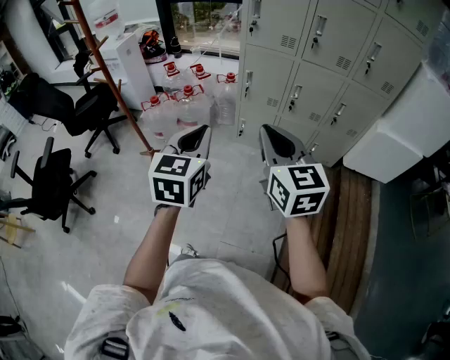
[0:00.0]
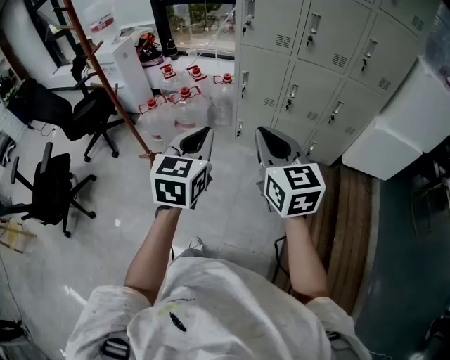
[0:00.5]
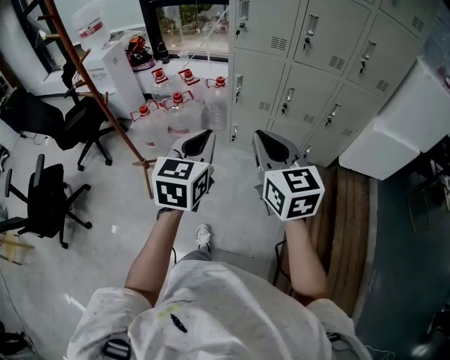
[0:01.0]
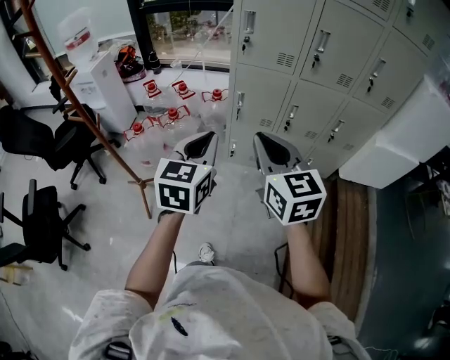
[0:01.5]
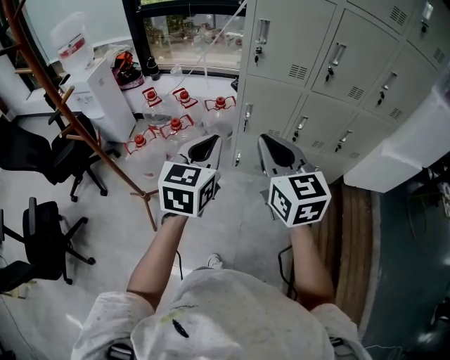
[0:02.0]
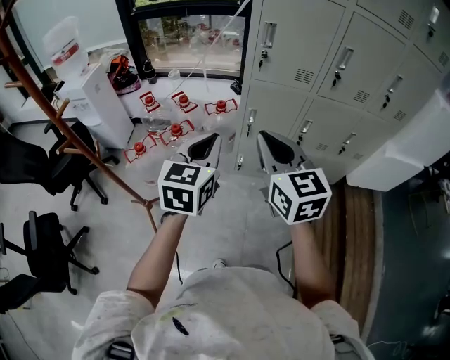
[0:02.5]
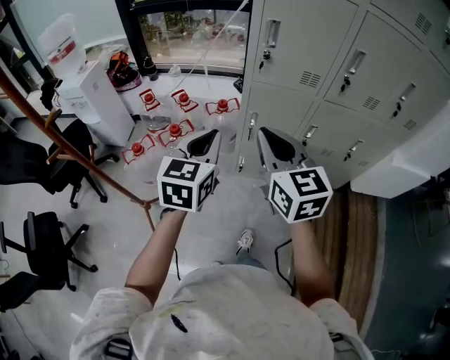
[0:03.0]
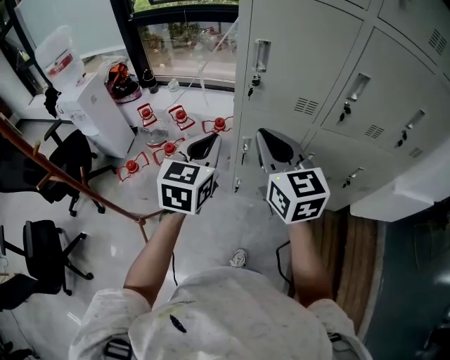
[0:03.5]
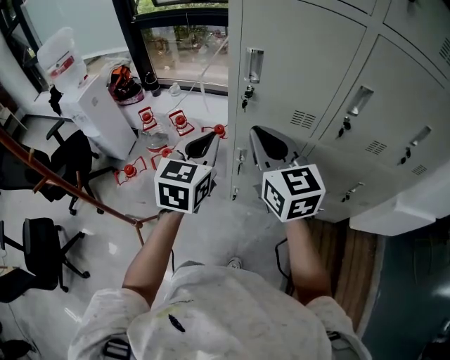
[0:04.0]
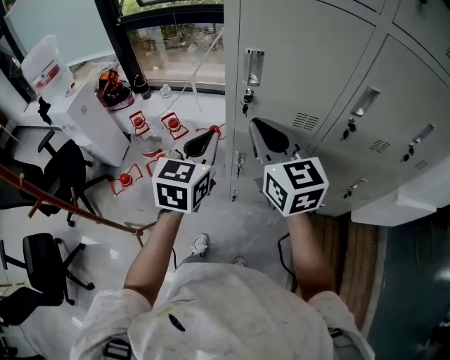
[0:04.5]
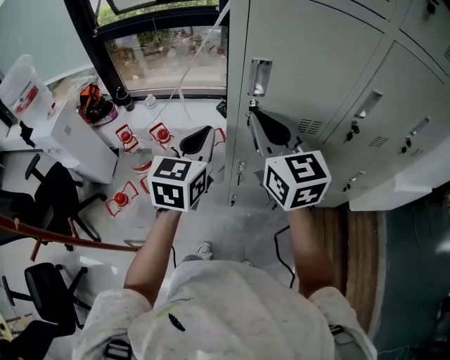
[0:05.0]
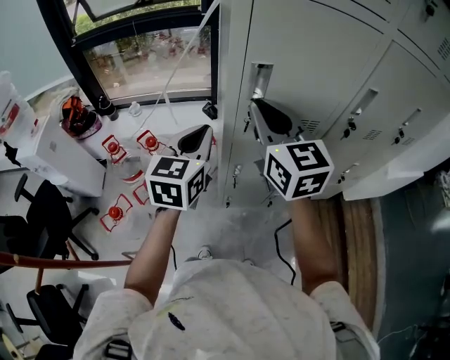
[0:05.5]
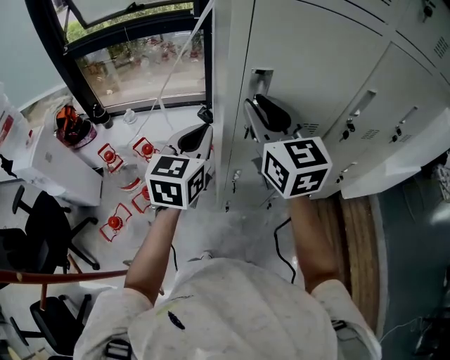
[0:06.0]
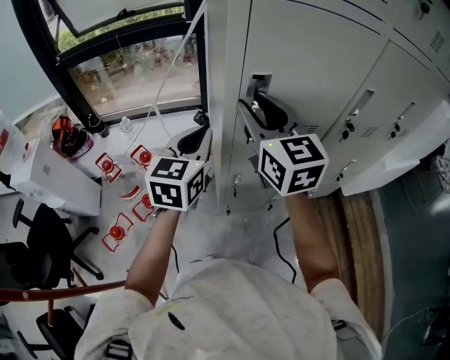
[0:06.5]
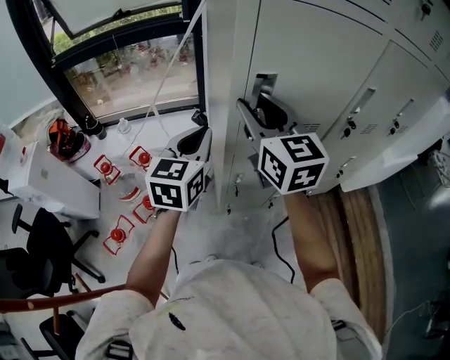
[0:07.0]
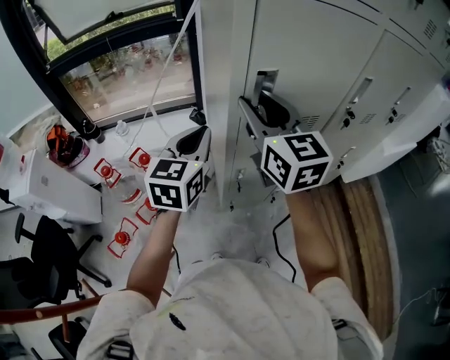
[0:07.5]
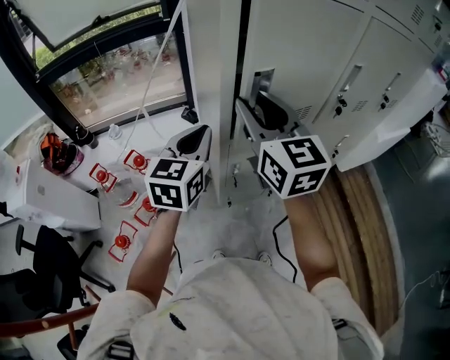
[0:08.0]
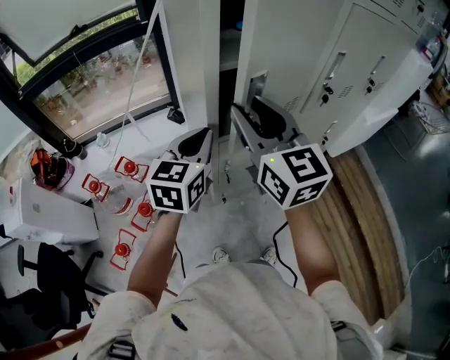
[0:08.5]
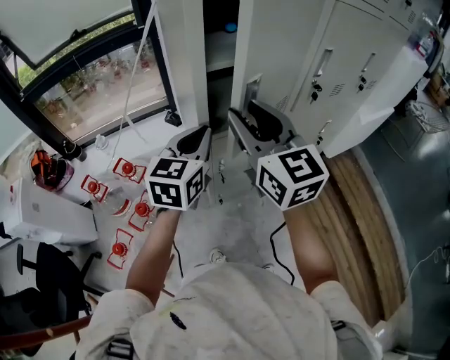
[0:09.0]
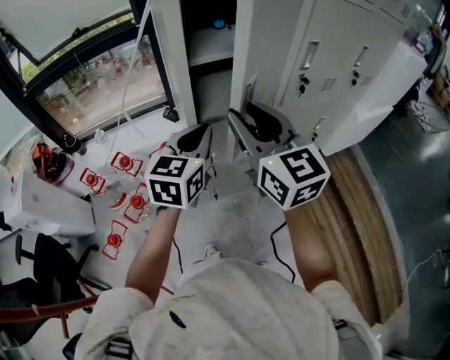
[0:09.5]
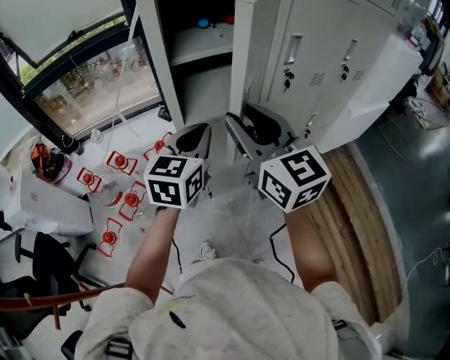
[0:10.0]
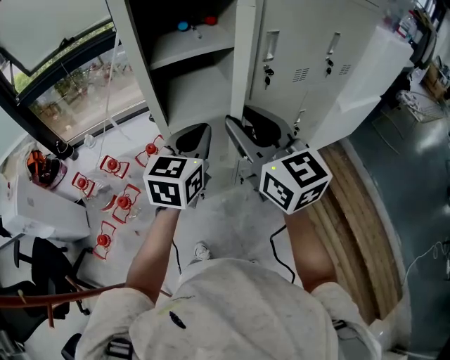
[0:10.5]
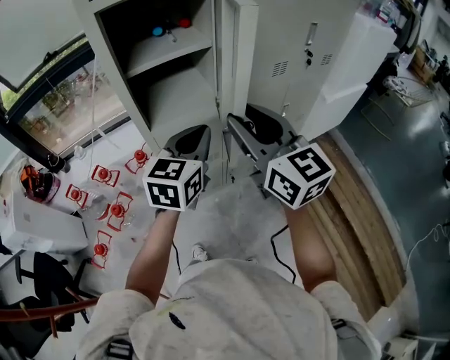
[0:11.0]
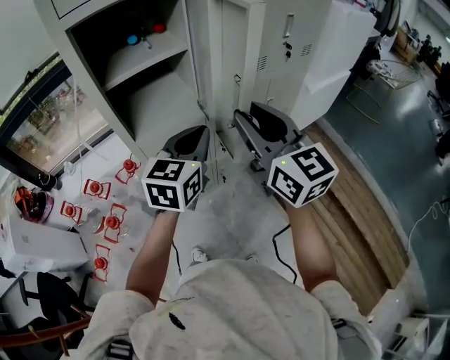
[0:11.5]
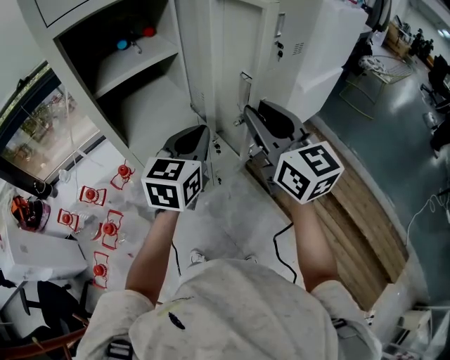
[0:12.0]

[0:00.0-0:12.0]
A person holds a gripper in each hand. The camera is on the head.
0:00.0 to 0:02.0: The grippers both shift forward by about 25 cm.
0:02.0 to 0:04.0: Both grippers travel together forward, some 25 cm.
0:04.0 to 0:06.0: The two grippers go roughly 15 cm forward. The right gripper turns by approximately 20 degrees.
0:06.0 to 0:08.0: The grippers stay close to where they were, moving slightly.
0:08.0 to 0:10.0: Both grippers travel together to the right and backward, about 15 cm.
0:10.0 to 0:12.0: Both grippers travel together to the right, about 20 cm.

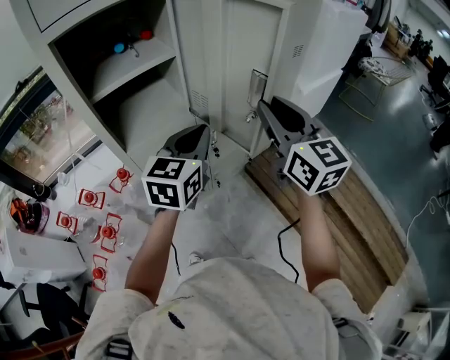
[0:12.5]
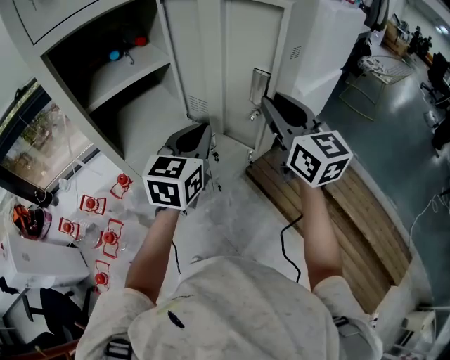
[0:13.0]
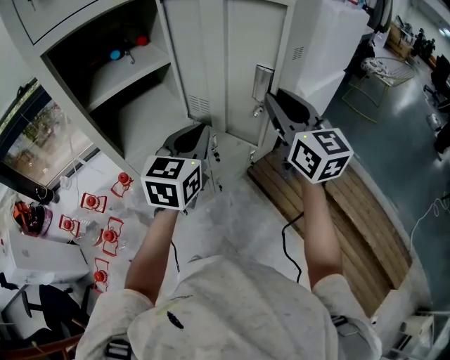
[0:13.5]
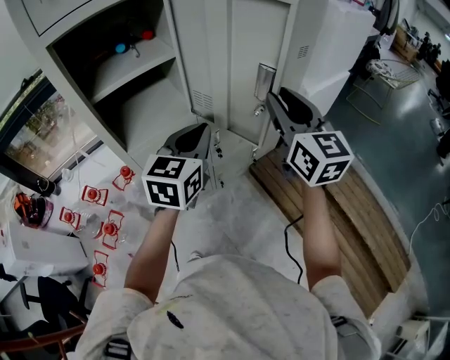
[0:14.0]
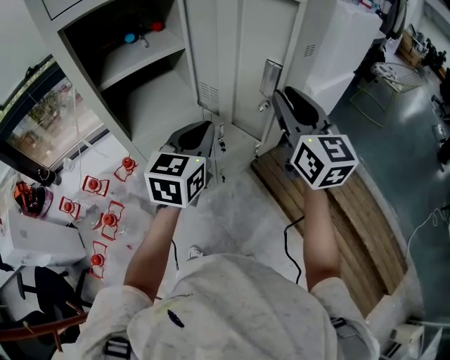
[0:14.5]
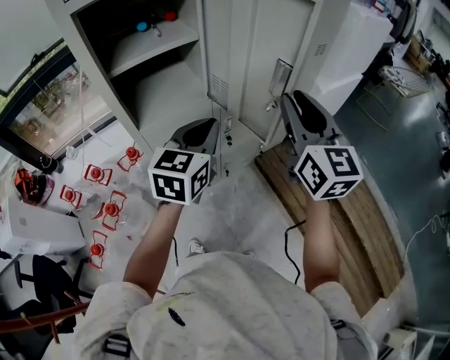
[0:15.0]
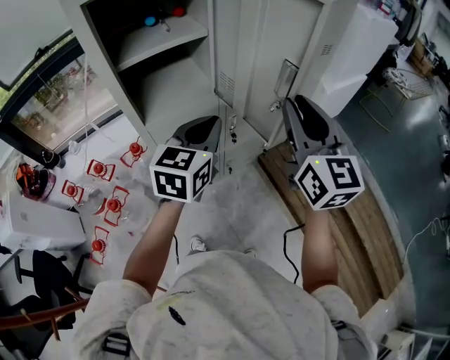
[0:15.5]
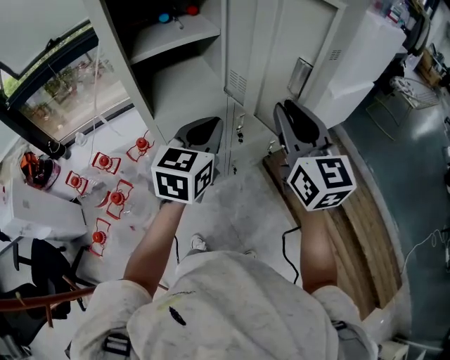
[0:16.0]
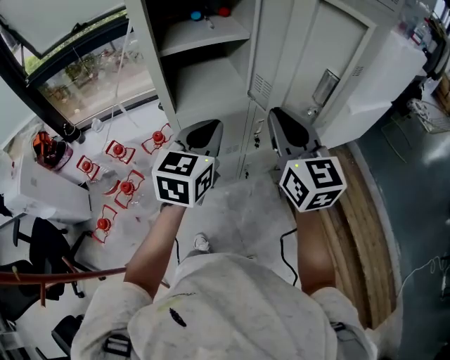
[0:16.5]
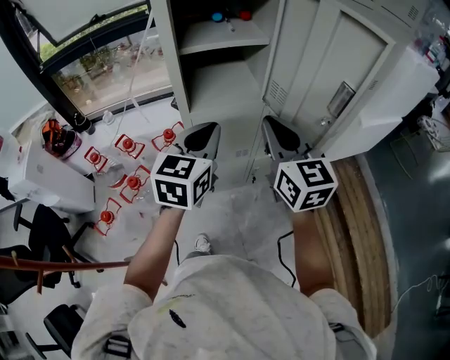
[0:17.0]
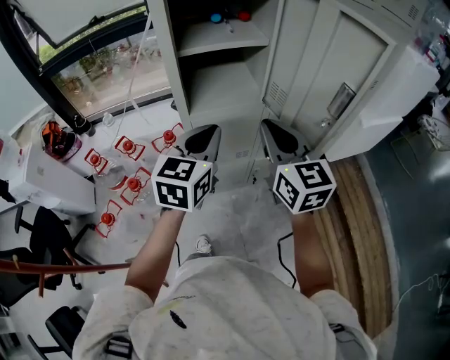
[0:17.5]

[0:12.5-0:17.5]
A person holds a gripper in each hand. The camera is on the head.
0:12.5 to 0:15.0: The grippers make only small movements.
0:15.0 to 0:17.5: Both grippers move to the left, approximately 15 cm. The right gripper changes its angle by about 20 degrees, and closes its fingers.

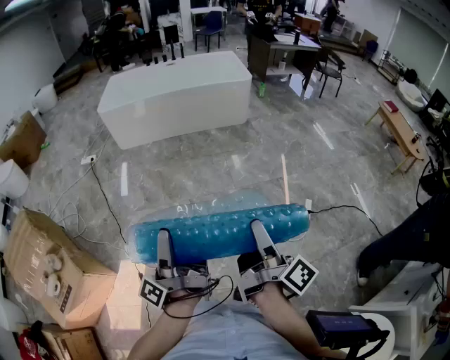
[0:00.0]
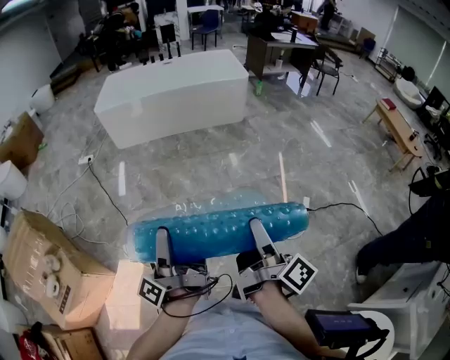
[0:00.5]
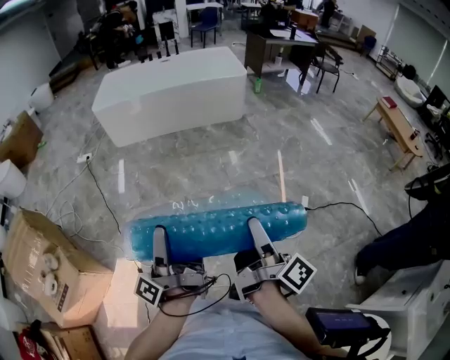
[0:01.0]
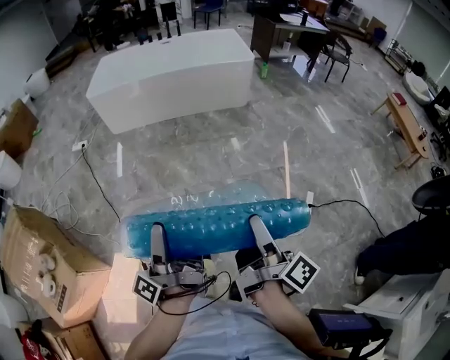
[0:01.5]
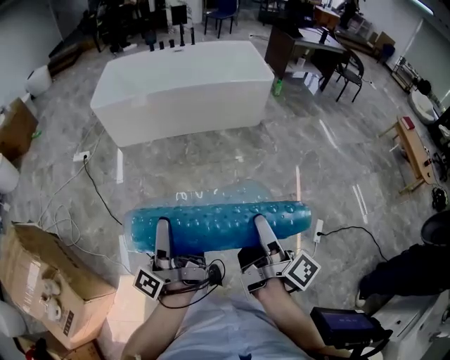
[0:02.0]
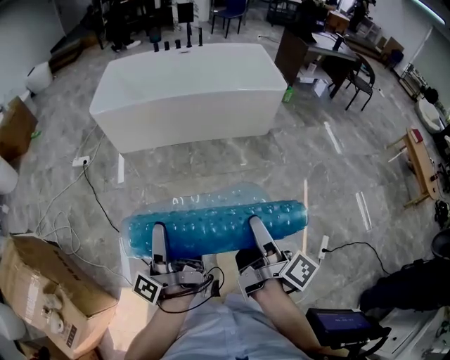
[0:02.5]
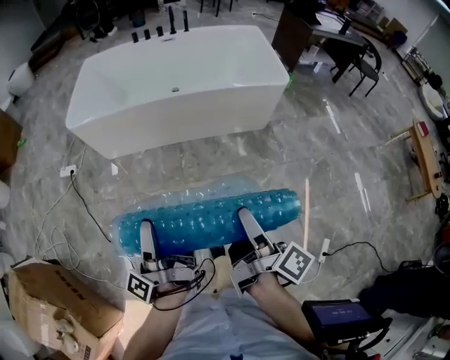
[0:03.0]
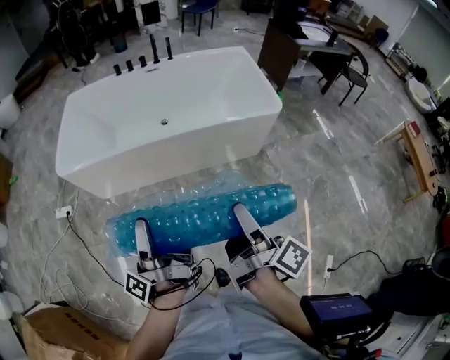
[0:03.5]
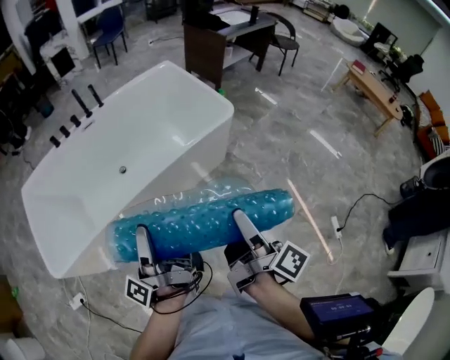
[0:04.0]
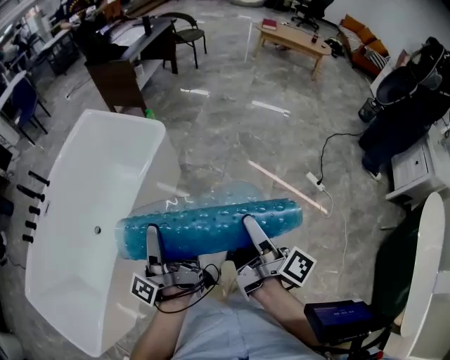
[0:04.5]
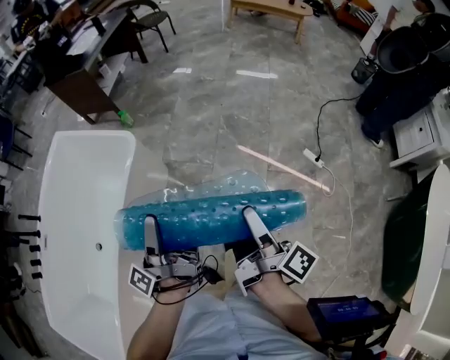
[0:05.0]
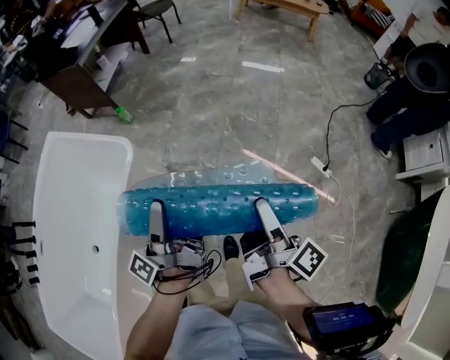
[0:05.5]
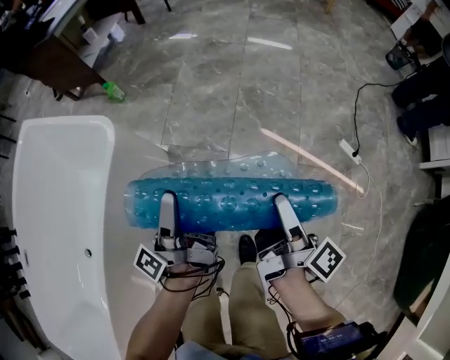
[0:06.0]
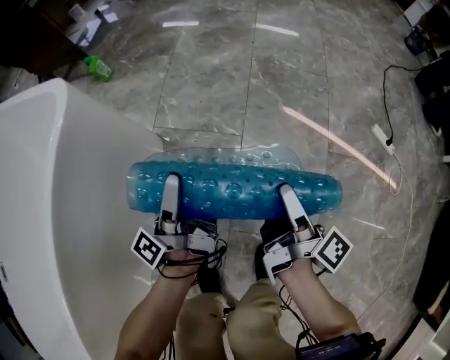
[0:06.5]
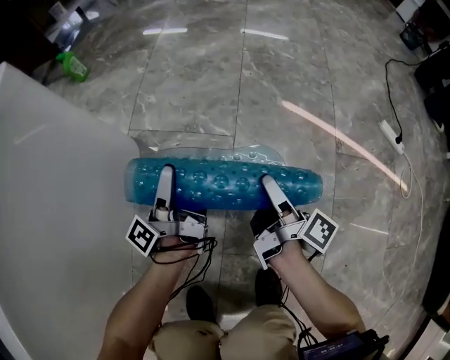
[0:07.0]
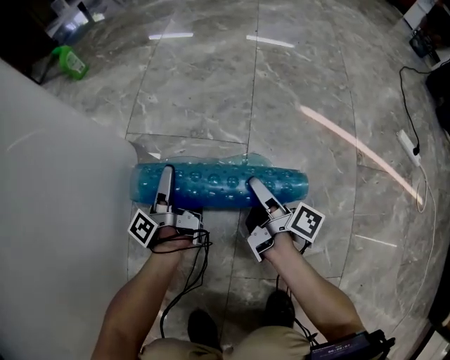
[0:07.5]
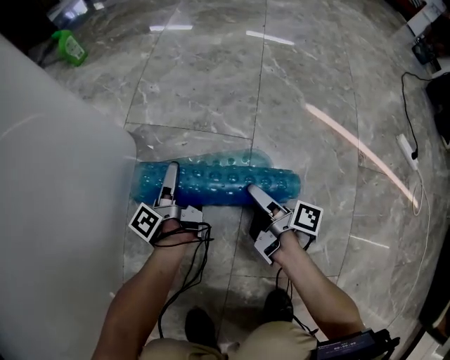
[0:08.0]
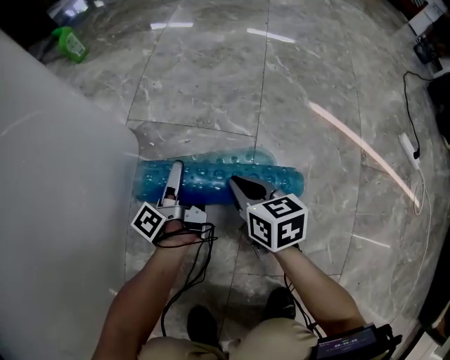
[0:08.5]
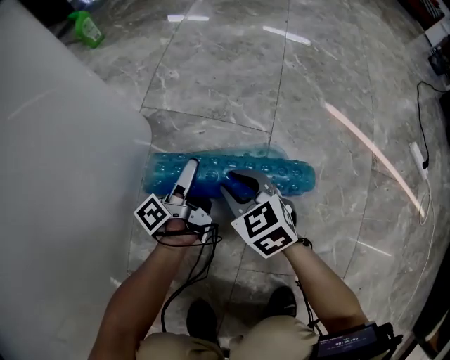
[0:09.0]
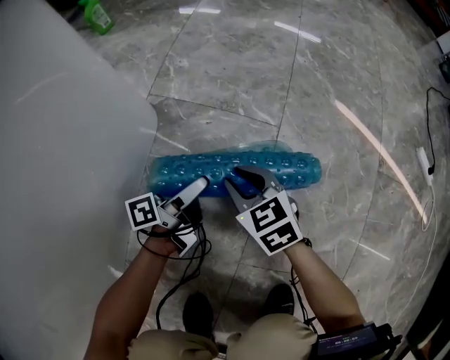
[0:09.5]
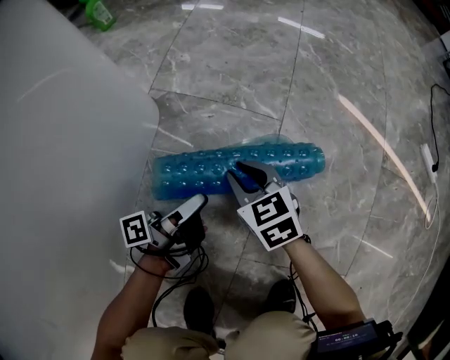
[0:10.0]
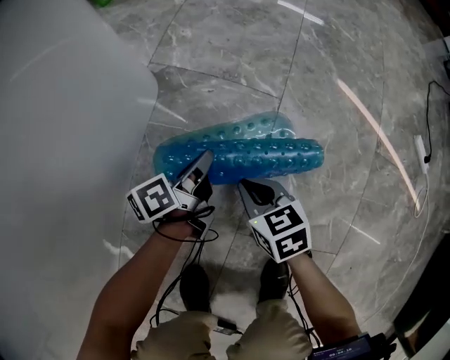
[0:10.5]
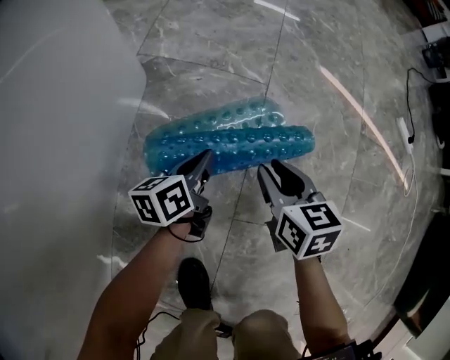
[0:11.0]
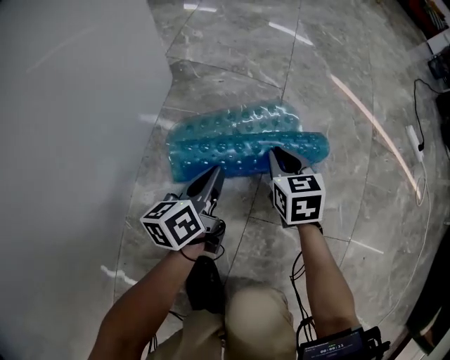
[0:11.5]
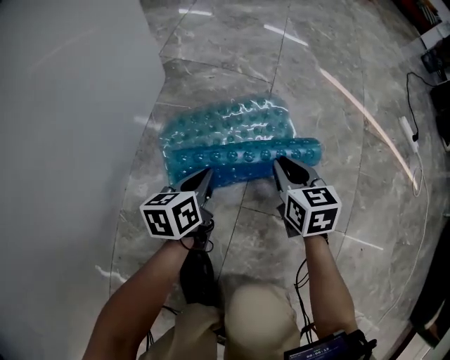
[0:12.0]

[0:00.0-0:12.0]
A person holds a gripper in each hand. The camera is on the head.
0:00.0 to 0:02.0: The grippers both shift forward by roughly 30 cm.
0:02.0 to 0:04.0: Both grippers are carried about 70 cm. The left gripper changes its angle by some 30 degrees, while the right gripper swivels about 30 degrees.
0:04.0 to 0:06.0: Both grippers are carried roughly 50 cm. The right gripper changes its angle by some 40 degrees, while the left gripper swivels roughly 50 degrees.
0:06.0 to 0:08.0: Both grippers move downward, about 60 cm. The right gripper rotates some 30 degrees, while the left gripper swivels approximately 20 degrees.
0:08.0 to 0:10.0: The left gripper travels backward by about 15 cm, changes its angle by some 30 degrees, and closes its fingers. The right gripper is displaced to the left by some 10 cm, rolls counterclockwise, seen from behind, by approximately 90 degrees, and closes.
0:10.0 to 0:12.0: The right gripper goes approximately 15 cm backward and to the right, and rotates some 20 degrees. The left gripper heads backward, covering roughly 10 cm, and rotates around the line of its fingers by some 50 degrees, clockwise from behind.
